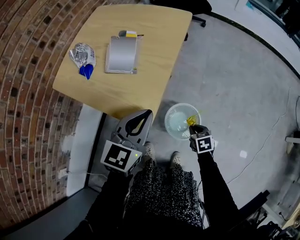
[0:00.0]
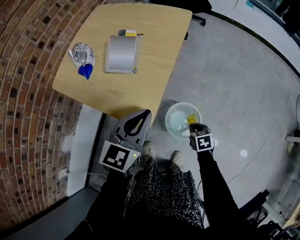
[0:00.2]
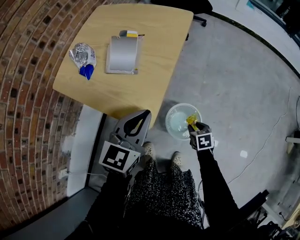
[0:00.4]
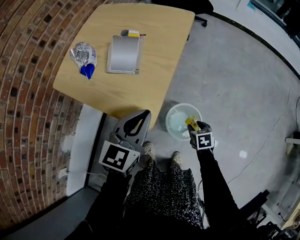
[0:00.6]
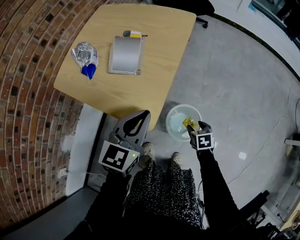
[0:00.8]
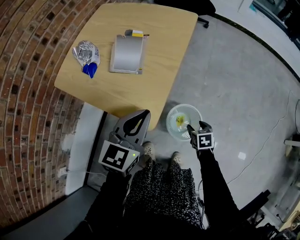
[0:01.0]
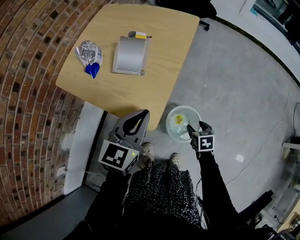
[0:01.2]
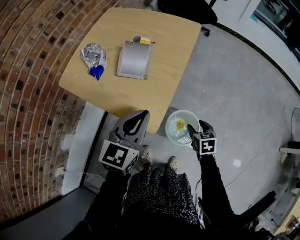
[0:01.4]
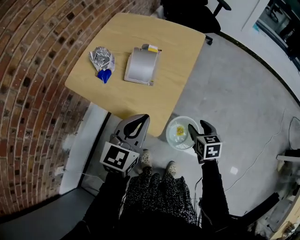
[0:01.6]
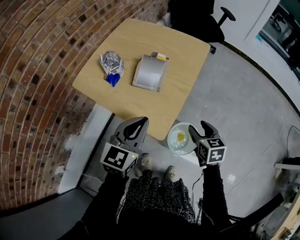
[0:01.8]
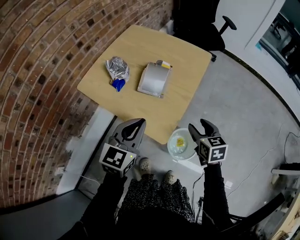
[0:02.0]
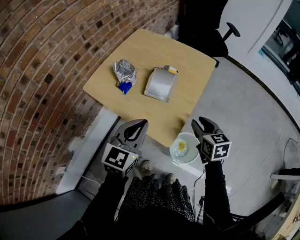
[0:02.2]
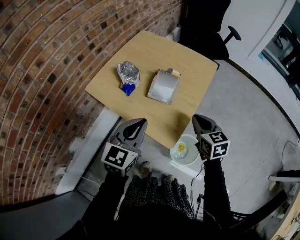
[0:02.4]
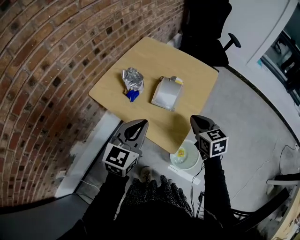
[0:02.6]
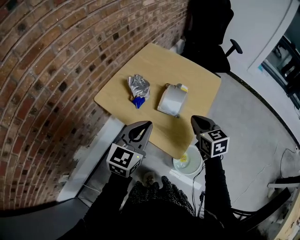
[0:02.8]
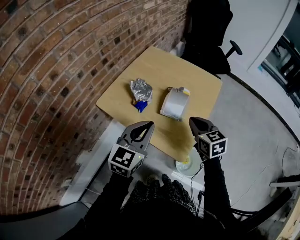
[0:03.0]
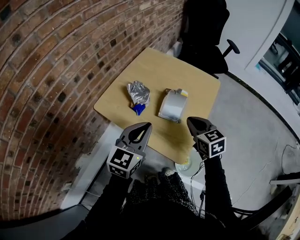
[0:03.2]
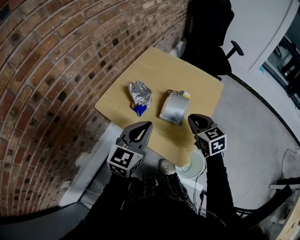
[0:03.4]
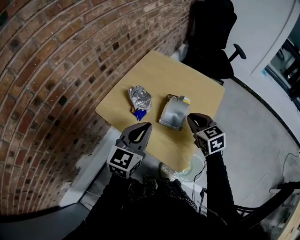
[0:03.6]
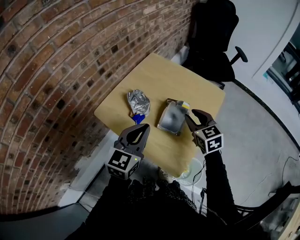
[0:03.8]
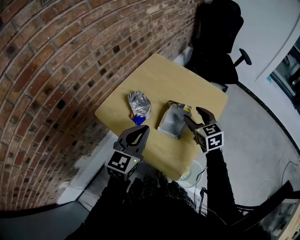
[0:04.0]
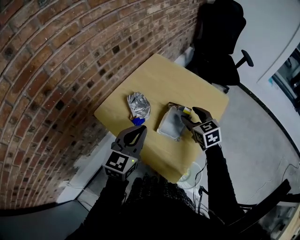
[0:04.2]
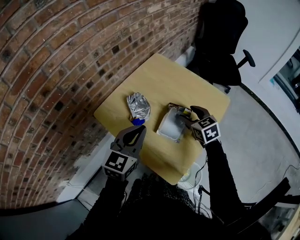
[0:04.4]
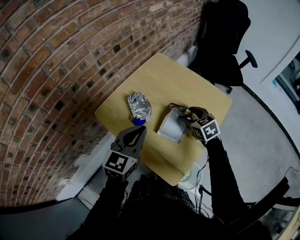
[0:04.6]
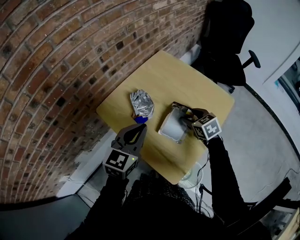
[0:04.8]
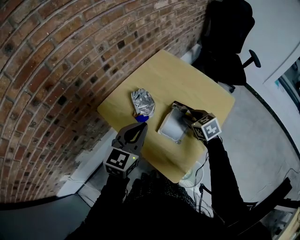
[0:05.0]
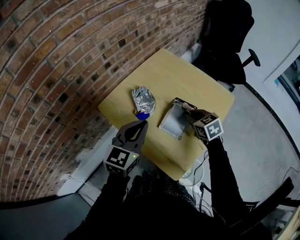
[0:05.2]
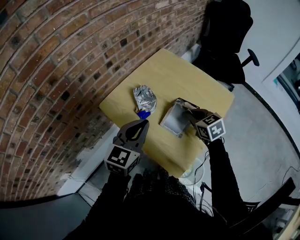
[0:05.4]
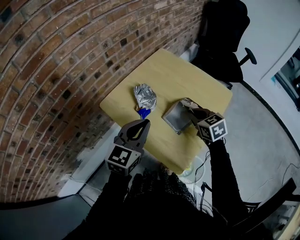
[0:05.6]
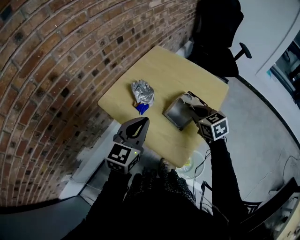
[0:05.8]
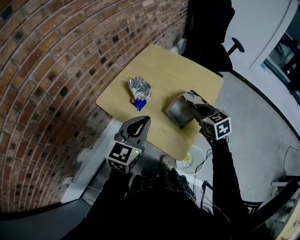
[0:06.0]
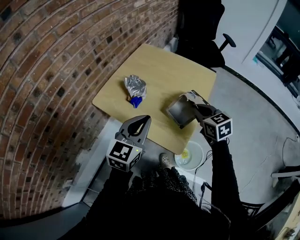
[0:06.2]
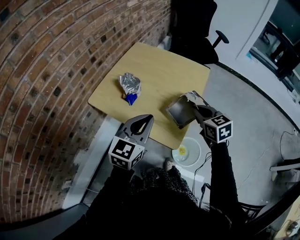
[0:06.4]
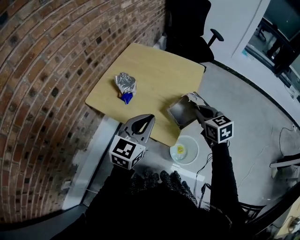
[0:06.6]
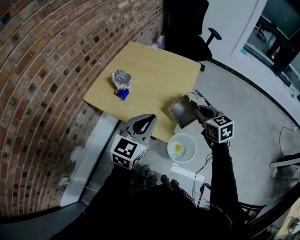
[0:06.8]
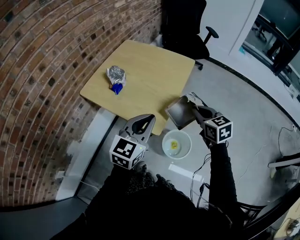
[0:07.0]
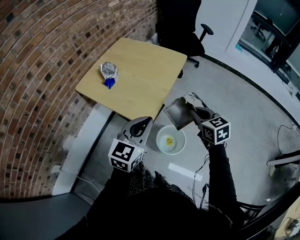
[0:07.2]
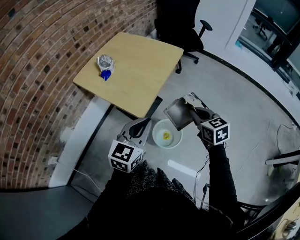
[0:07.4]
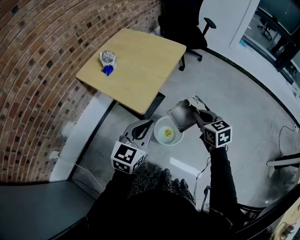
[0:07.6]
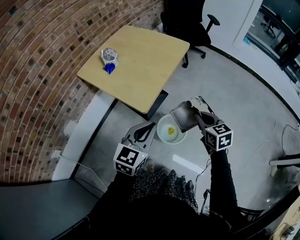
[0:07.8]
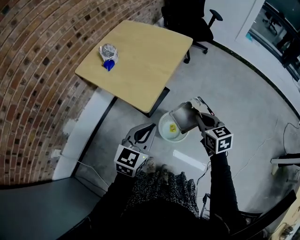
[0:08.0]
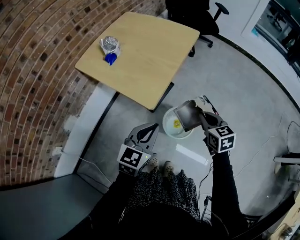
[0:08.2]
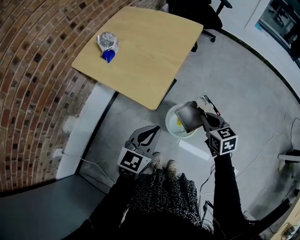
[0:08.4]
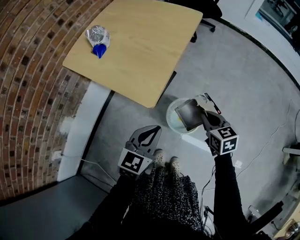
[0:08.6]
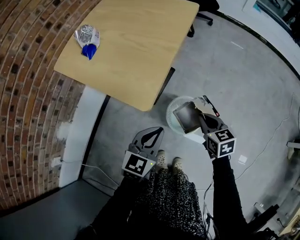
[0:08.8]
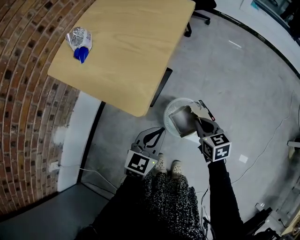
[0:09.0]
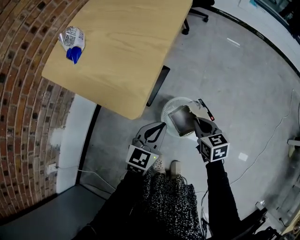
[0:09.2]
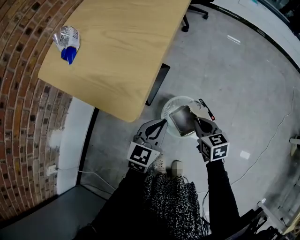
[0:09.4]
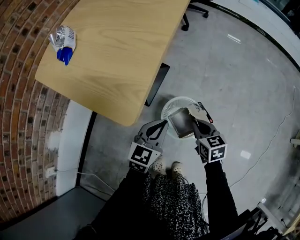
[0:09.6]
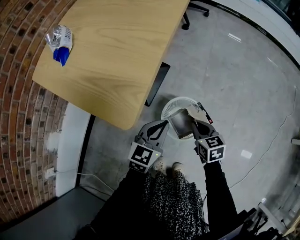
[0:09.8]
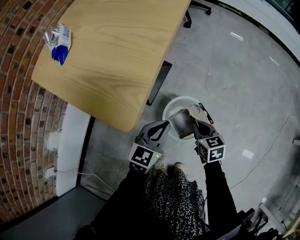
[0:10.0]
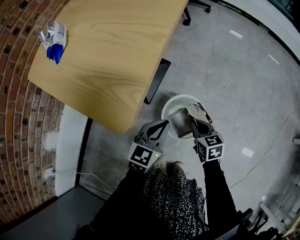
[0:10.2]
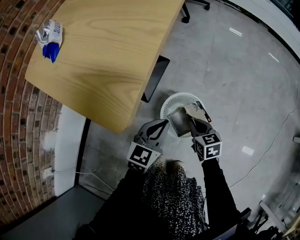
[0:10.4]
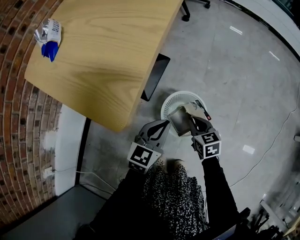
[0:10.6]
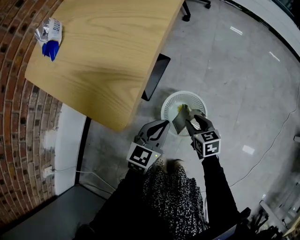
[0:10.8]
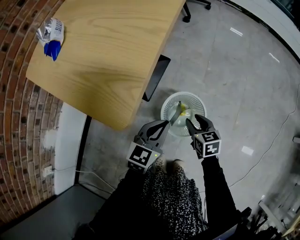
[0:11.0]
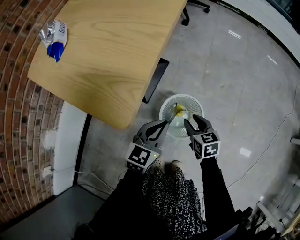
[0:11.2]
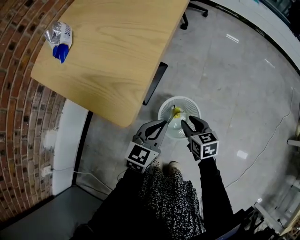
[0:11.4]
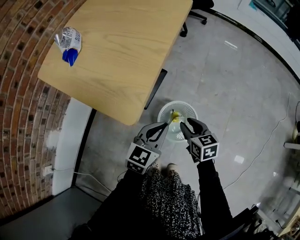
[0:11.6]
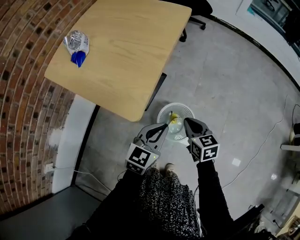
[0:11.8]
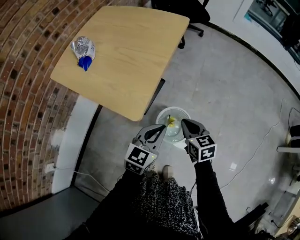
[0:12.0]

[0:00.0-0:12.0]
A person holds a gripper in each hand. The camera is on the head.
0:00.0 to 0:01.6: The left gripper heads to the left, covering approximately 5 cm; the right gripper shifts some 15 cm upward and forward, and opens.
0:01.6 to 0:03.0: The left gripper shifts approximately 15 cm to the left and upward. Meanwhile the right gripper heads upward, to the left and forward, covering about 30 cm, rotates some 20 degrees, and closes.
0:03.0 to 0:04.4: The left gripper moves forward, some 10 cm. Meanwhile the right gripper heads forward, covering some 15 cm, and opens.
0:04.4 to 0:06.0: Both grippers move backward, some 10 cm. The right gripper closes its fingers.
0:06.0 to 0:07.6: The right gripper shifts some 35 cm backward and to the right; the left gripper is displaced to the right and backward by roughly 35 cm.
0:07.6 to 0:09.0: The two grippers go approximately 25 cm downward.
0:09.0 to 0:10.4: The left gripper shifts roughly 15 cm downward and forward. The right gripper travels downward by approximately 15 cm.
0:10.4 to 0:12.0: The two grippers go about 20 cm upward. The right gripper opens, then closes once more.

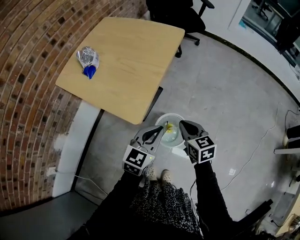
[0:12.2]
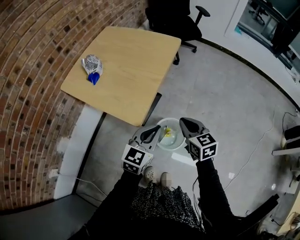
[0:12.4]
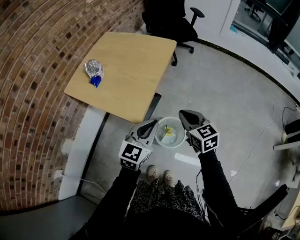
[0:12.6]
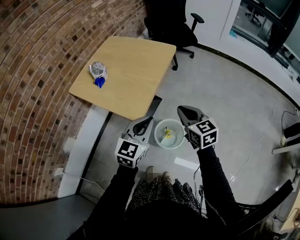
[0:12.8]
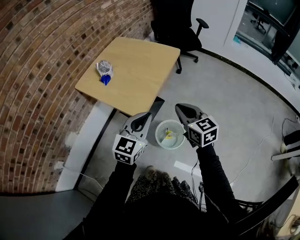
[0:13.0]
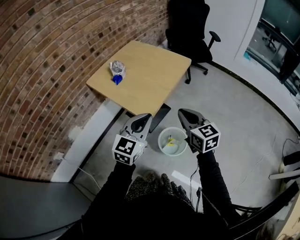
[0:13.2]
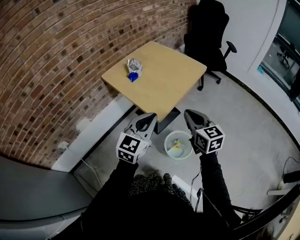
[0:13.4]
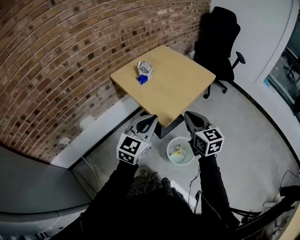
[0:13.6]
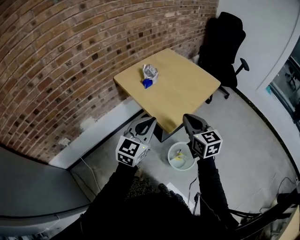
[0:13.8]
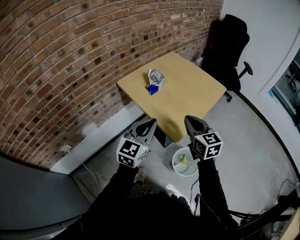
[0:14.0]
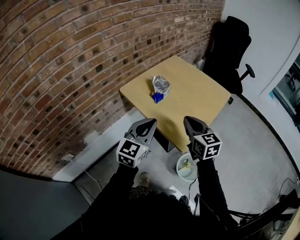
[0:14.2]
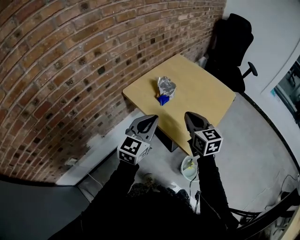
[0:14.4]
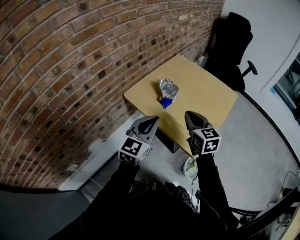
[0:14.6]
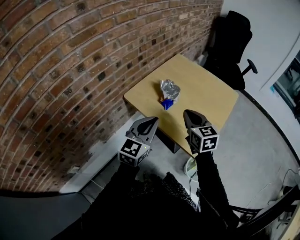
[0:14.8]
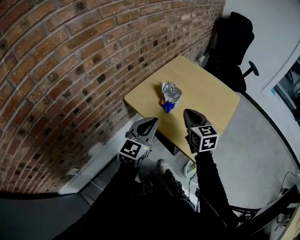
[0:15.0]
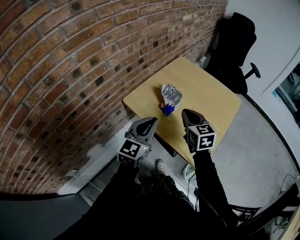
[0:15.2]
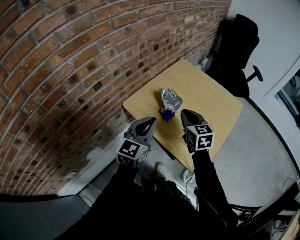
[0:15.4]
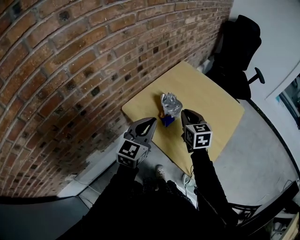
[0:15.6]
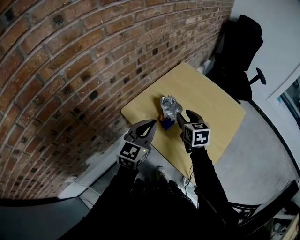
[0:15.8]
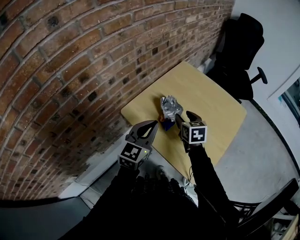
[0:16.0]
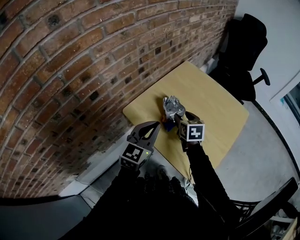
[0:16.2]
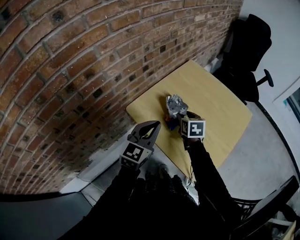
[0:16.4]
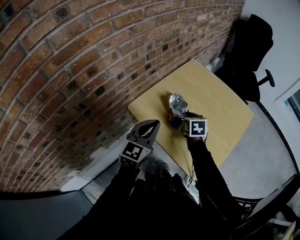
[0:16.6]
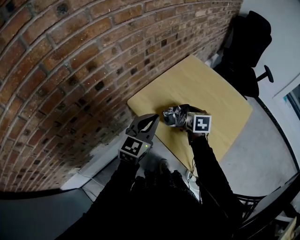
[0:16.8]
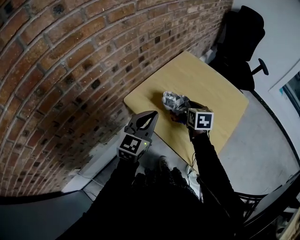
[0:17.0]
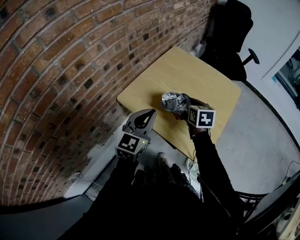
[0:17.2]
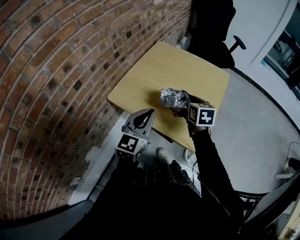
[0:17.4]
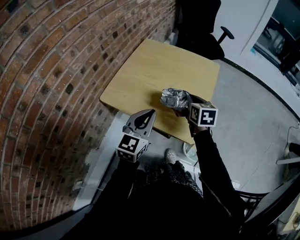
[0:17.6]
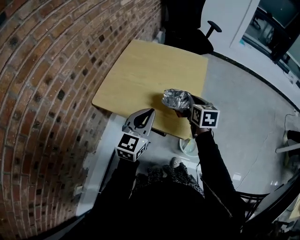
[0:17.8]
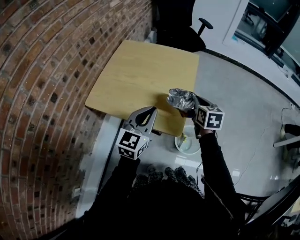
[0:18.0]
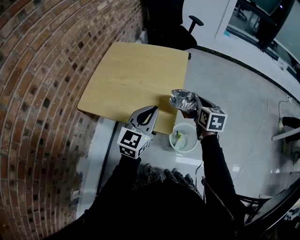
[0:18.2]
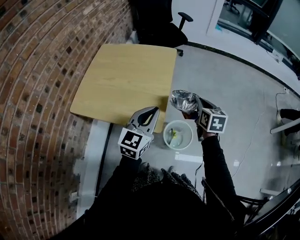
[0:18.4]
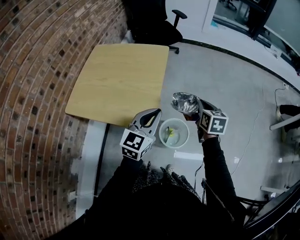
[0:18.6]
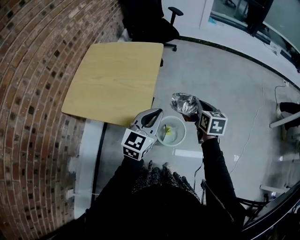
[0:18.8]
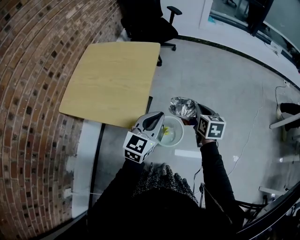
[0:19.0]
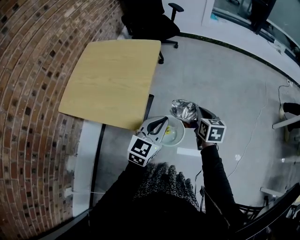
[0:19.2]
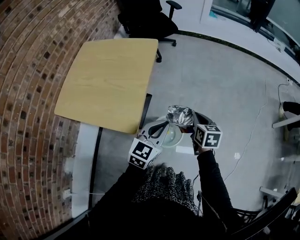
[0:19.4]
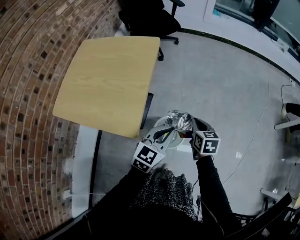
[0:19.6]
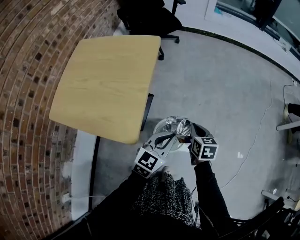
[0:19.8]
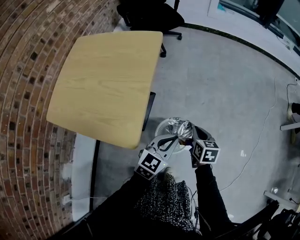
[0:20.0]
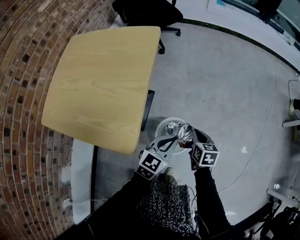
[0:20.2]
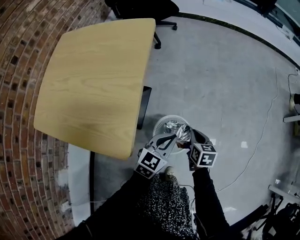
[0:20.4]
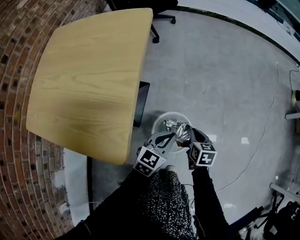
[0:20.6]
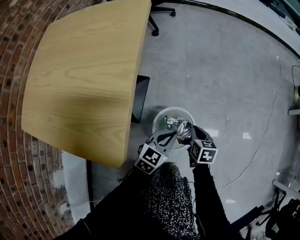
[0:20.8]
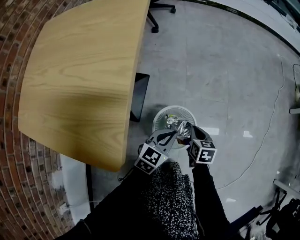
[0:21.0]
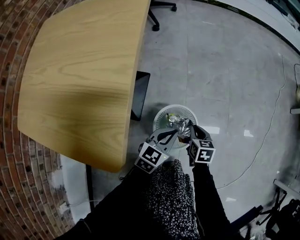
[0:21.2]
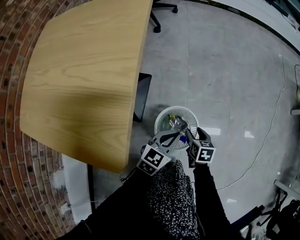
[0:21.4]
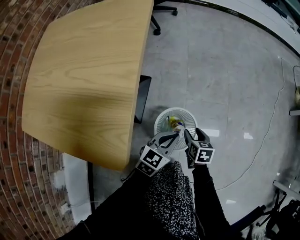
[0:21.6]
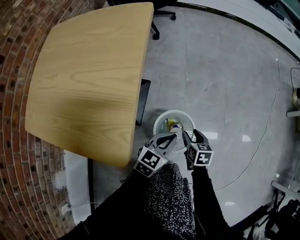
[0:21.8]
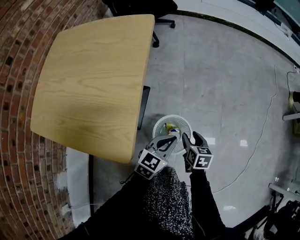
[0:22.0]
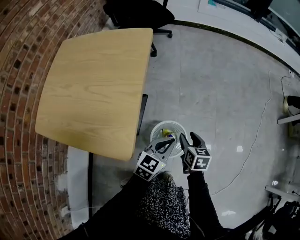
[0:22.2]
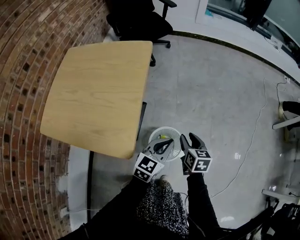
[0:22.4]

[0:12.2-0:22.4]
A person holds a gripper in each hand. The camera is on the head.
0:12.2 to 0:13.6: The right gripper travels upward by approximately 25 cm, and changes its angle by some 30 degrees. The left gripper shifts roughly 25 cm upward and to the left, and changes its angle by some 30 degrees.
0:13.6 to 0:15.2: The two grippers go some 35 cm forward and to the left.
0:15.2 to 0:16.6: The right gripper is displaced forward and downward by roughly 15 cm, rotates some 20 degrees, and opens and closes again. The left gripper moves forward, roughly 5 cm.
0:16.6 to 0:18.0: The right gripper changes place by some 35 cm, and turns by approximately 30 degrees; the left gripper changes place by roughly 20 cm, and turns by some 30 degrees.
0:18.0 to 0:19.4: The left gripper shifts some 30 cm to the right. The right gripper shifts roughly 30 cm to the right and downward.
0:19.4 to 0:21.0: The two grippers go about 35 cm downward. The left gripper rotates roughly 20 degrees.
0:21.0 to 0:22.4: Both grippers move upward, some 20 cm. The right gripper opens up.

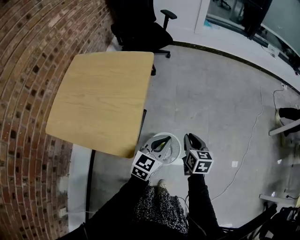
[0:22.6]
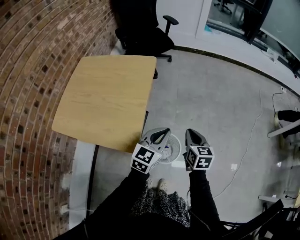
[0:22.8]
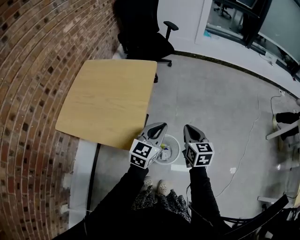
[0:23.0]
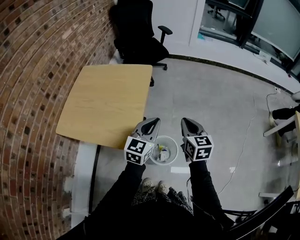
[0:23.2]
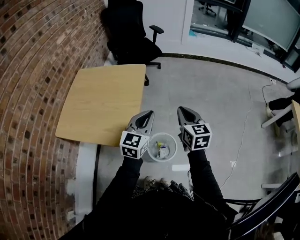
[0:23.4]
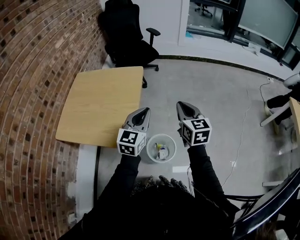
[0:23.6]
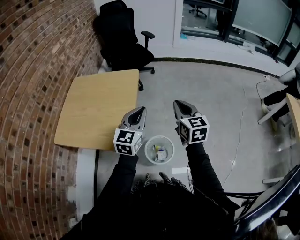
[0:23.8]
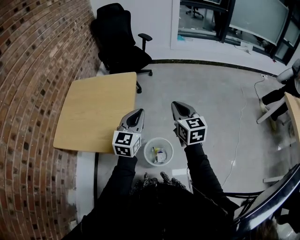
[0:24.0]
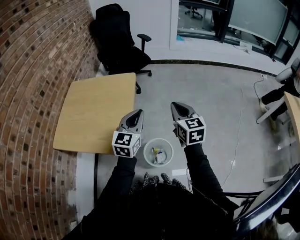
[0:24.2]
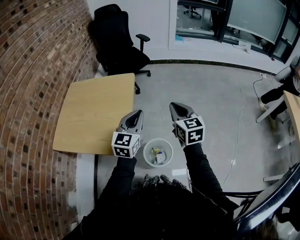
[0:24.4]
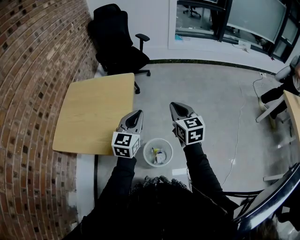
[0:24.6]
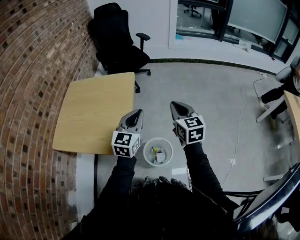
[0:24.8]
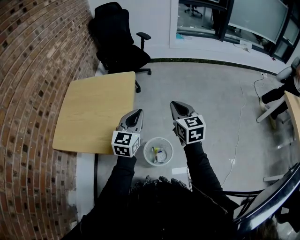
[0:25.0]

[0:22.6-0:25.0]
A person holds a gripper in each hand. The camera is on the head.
0:22.6 to 0:23.8: Both grippers move upward, roughly 20 cm. The right gripper rotates some 20 degrees.
0:23.8 to 0:25.0: Both grippers stay put.
